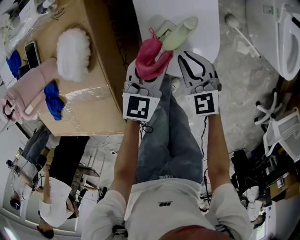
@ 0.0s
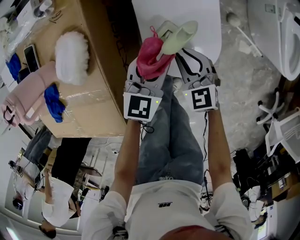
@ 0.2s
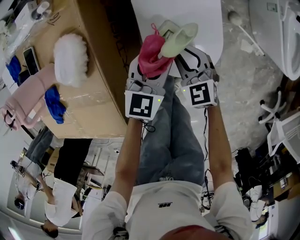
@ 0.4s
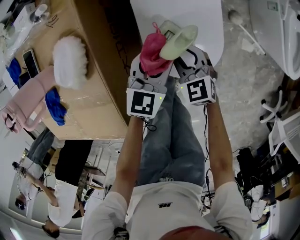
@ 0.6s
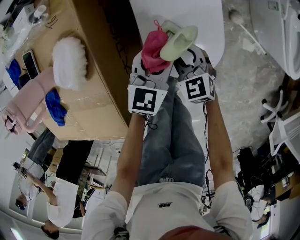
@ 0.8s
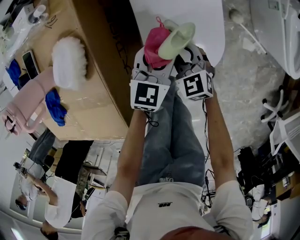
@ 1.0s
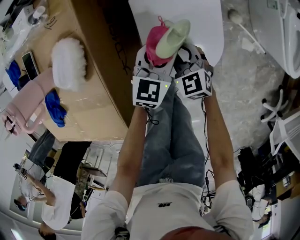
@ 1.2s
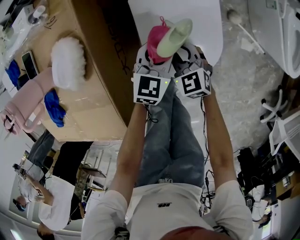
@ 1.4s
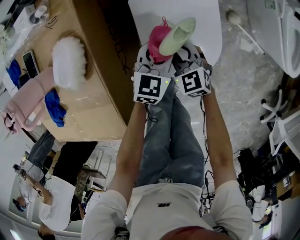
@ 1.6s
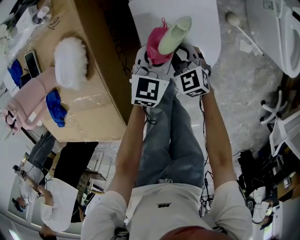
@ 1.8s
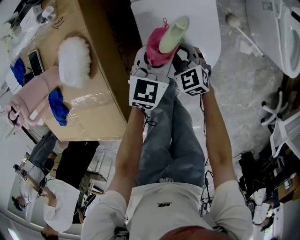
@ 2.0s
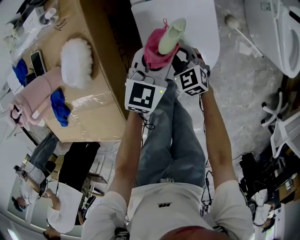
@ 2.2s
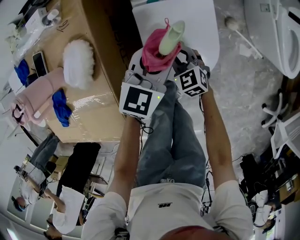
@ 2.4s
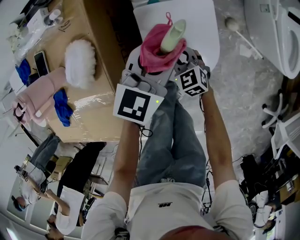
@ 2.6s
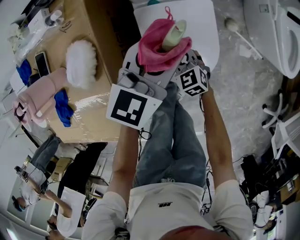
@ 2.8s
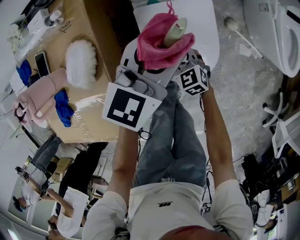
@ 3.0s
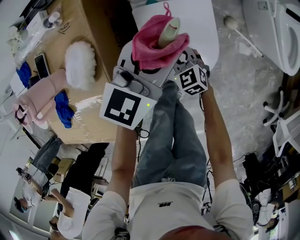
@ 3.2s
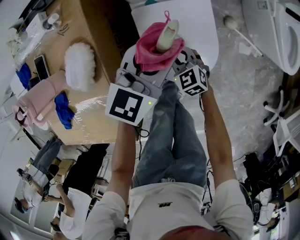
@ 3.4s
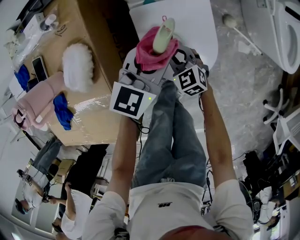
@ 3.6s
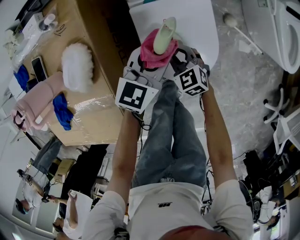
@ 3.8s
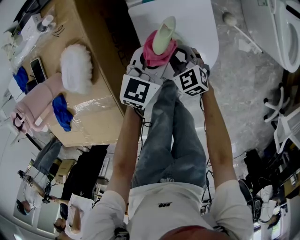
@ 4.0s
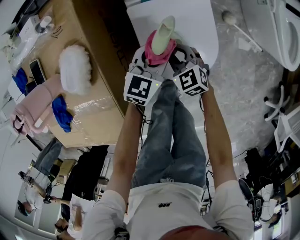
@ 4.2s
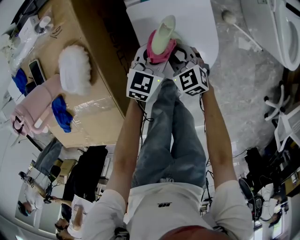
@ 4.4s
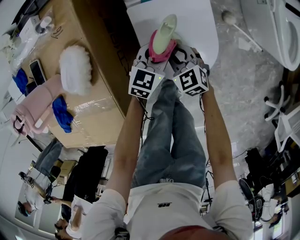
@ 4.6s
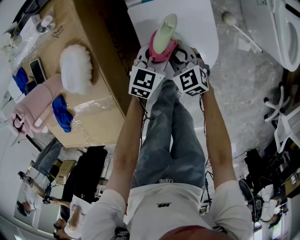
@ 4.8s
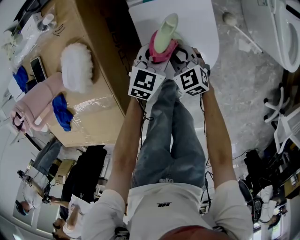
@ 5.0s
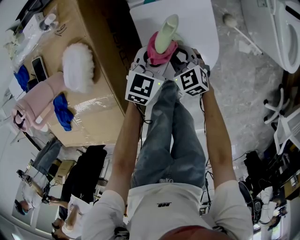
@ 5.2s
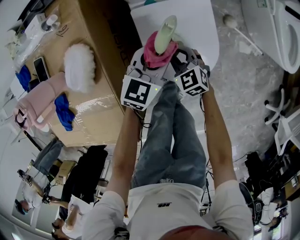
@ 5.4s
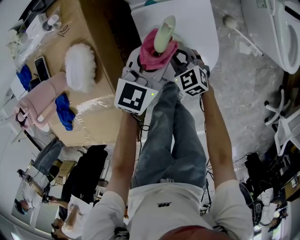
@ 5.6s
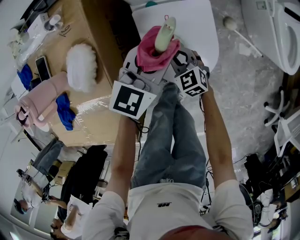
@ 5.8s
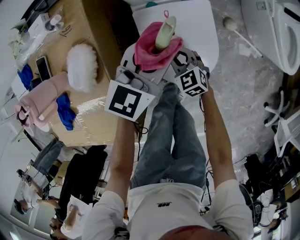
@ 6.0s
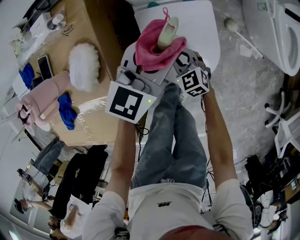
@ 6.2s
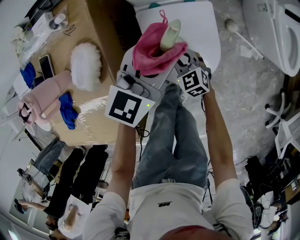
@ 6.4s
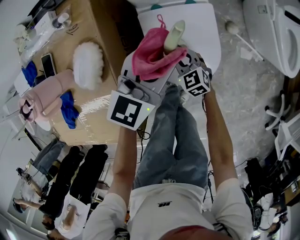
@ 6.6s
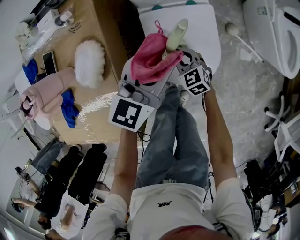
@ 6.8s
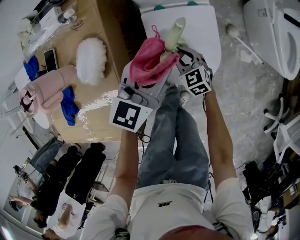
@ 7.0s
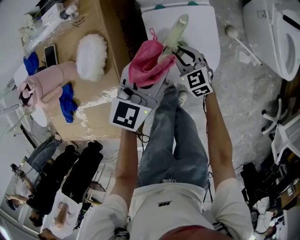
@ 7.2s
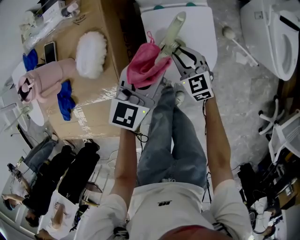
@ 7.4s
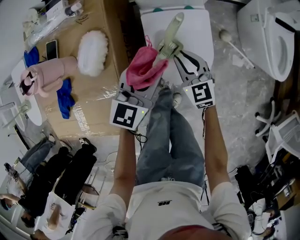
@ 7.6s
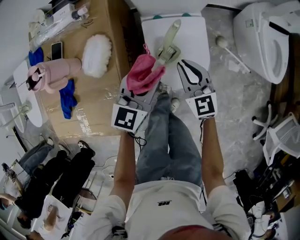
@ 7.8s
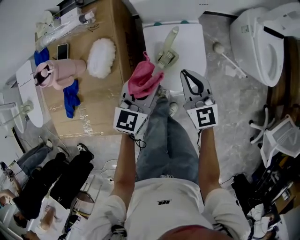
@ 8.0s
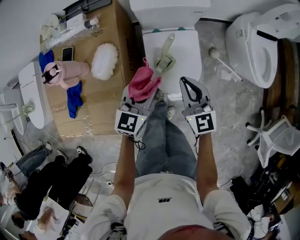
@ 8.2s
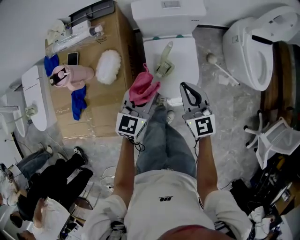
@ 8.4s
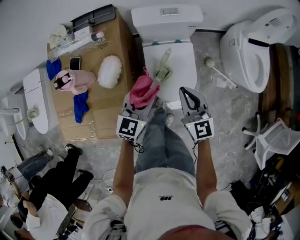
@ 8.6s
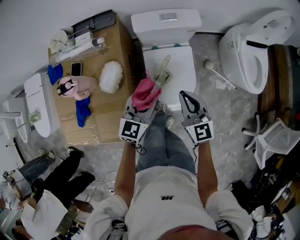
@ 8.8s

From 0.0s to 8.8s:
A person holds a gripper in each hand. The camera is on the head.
From 0.0s to 1.4s: The grippers both shift downward by approximately 10 cm.
From 1.4s to 3.0s: The left gripper heads upward, covering roughly 20 cm.
From 3.0s to 4.4s: The left gripper moves downward, roughly 20 cm.
From 4.4s to 5.8s: The left gripper travels upward by approximately 15 cm.
From 5.8s to 7.4s: The right gripper shifts approximately 5 cm upward; the left gripper is displaced backward and to the left by roughly 10 cm.
From 7.4s to 8.8s: The right gripper moves upward, about 30 cm, and closes up, while the left gripper moves upward, some 15 cm.

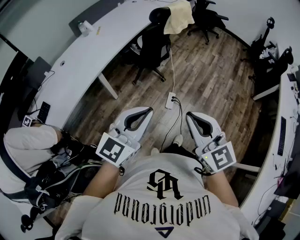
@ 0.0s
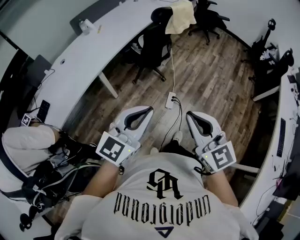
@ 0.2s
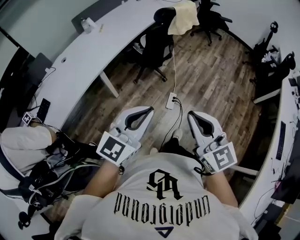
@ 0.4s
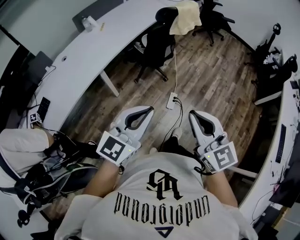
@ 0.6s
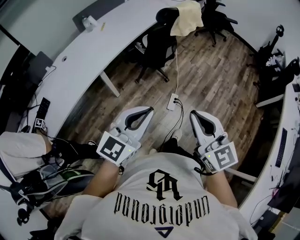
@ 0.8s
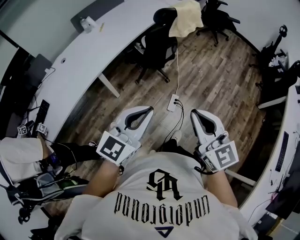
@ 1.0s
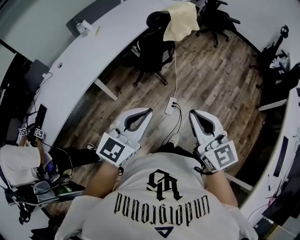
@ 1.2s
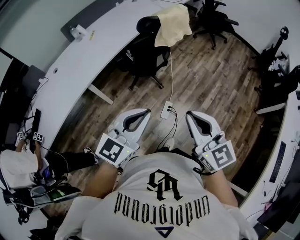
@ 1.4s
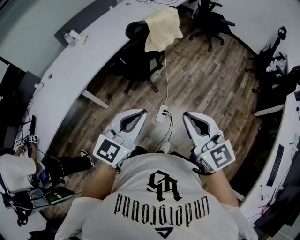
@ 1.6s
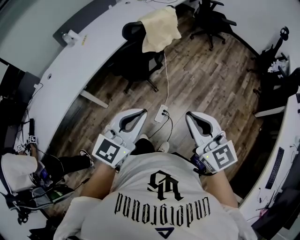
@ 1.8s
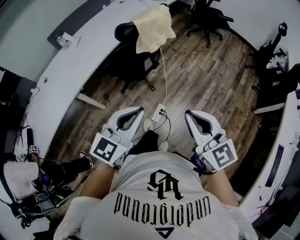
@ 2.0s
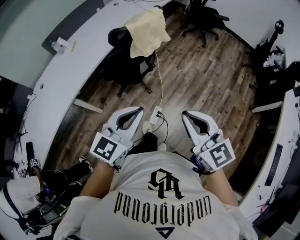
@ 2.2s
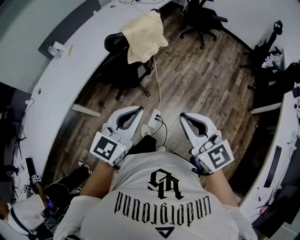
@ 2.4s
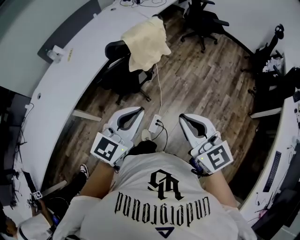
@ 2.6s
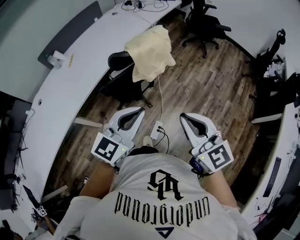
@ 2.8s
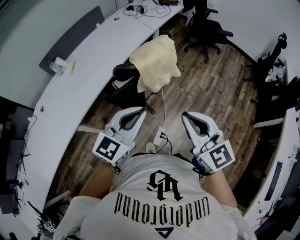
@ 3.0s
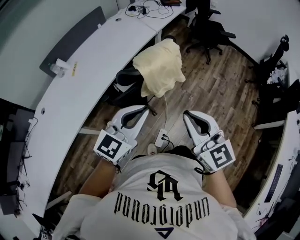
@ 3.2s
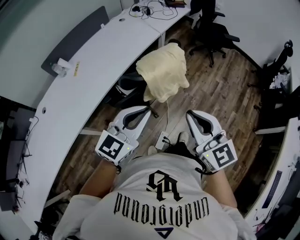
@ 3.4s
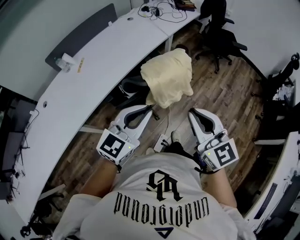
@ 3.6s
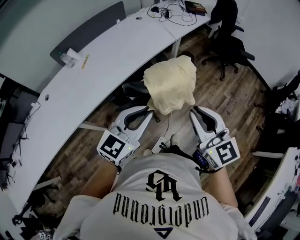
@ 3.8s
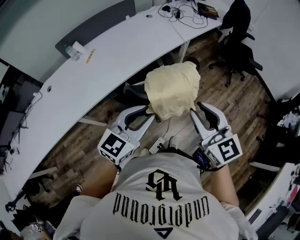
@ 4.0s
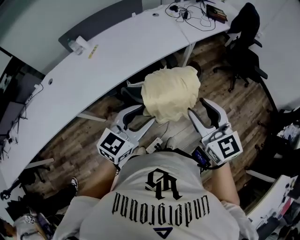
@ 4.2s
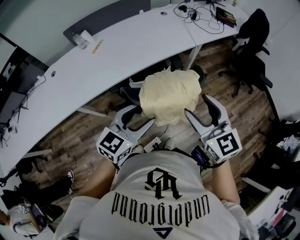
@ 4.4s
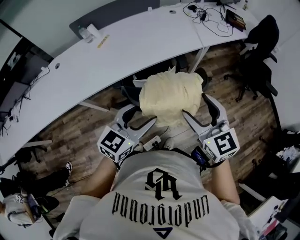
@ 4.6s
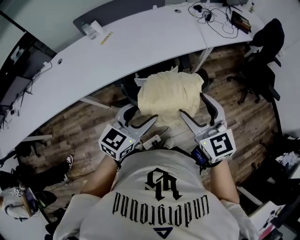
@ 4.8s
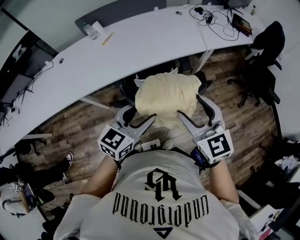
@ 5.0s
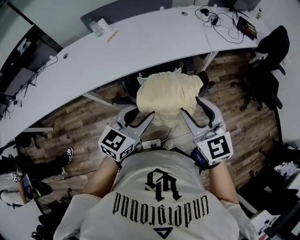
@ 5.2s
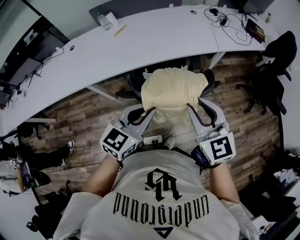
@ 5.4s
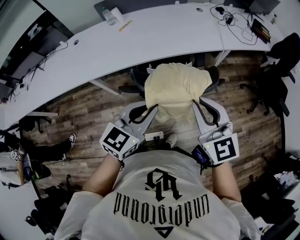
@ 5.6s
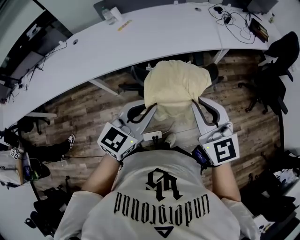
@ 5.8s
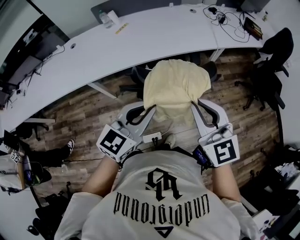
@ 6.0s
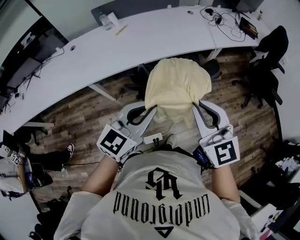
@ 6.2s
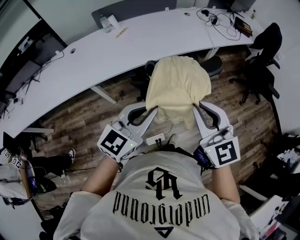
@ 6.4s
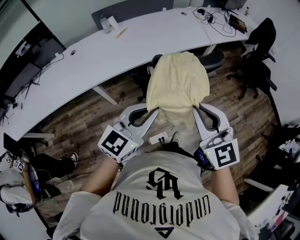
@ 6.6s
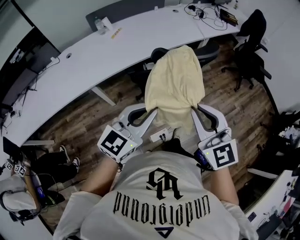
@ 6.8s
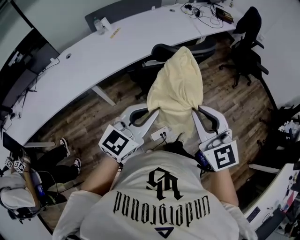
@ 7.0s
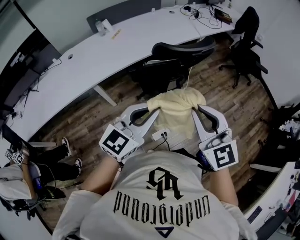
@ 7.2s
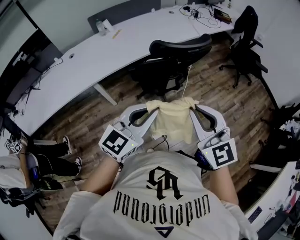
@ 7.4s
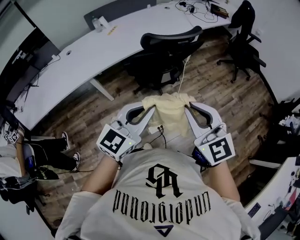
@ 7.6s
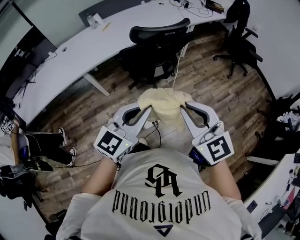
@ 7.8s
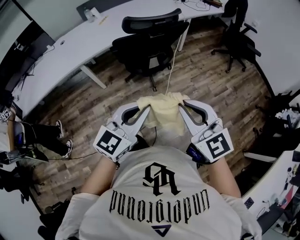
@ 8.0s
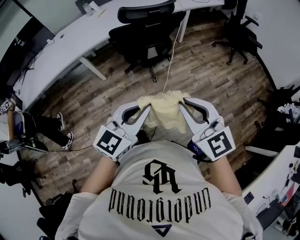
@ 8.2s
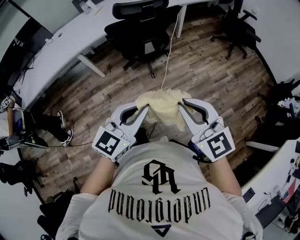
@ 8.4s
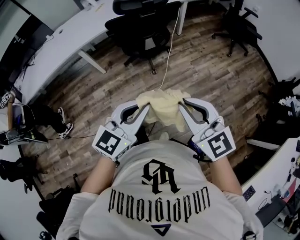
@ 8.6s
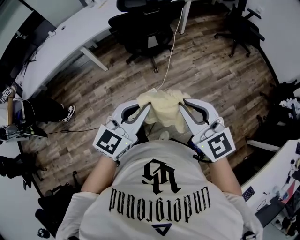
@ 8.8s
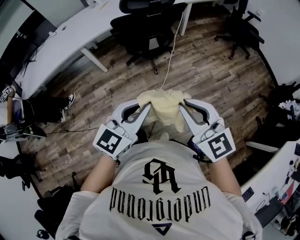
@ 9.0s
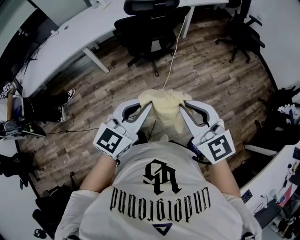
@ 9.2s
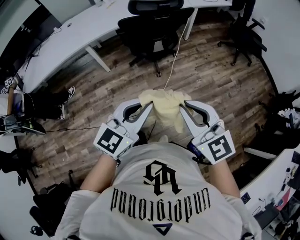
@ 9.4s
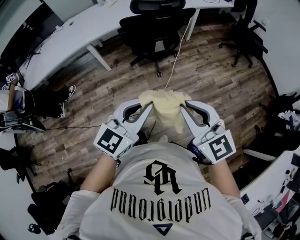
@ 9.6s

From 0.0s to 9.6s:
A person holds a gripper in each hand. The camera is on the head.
From 0.0s to 1.6s: Both grippers move forward and to the right, approximately 25 cm.
From 1.6s to 3.2s: Both grippers move forward, about 30 cm.
From 3.2s to 4.8s: The right gripper ends up roughly 25 cm from where it was, rotates about 30 degrees, and opens up. The left gripper changes place by roughly 20 cm, changes its angle by approximately 40 degrees, and opens up.
From 4.8s to 6.4s: The right gripper moves backward and to the left, about 15 cm, and closes its fingers, while the left gripper shifts roughly 15 cm backward, upward and to the left, and closes up.
From 6.4s to 8.0s: The grippers both shift backward by about 30 cm.
From 8.0s to 9.6s: The grippers both shift backward by some 10 cm.

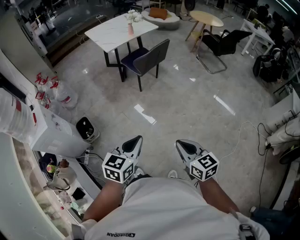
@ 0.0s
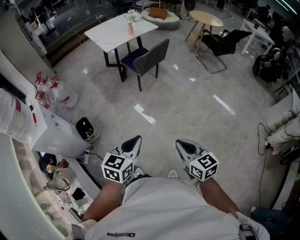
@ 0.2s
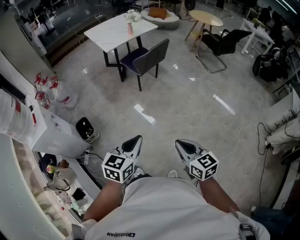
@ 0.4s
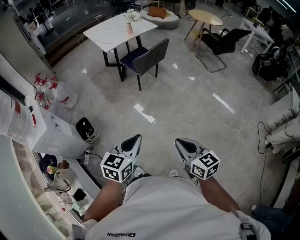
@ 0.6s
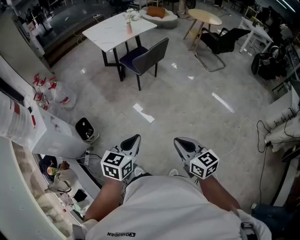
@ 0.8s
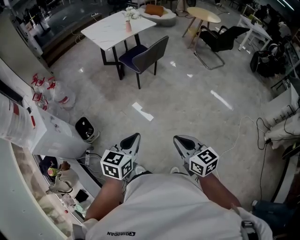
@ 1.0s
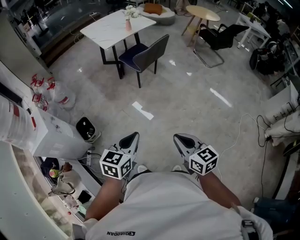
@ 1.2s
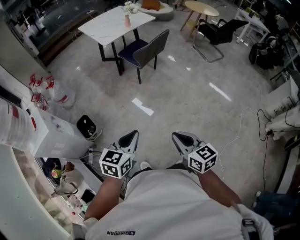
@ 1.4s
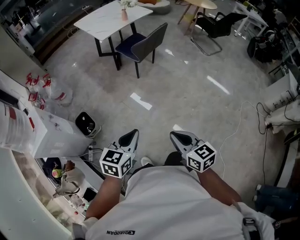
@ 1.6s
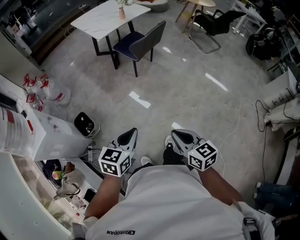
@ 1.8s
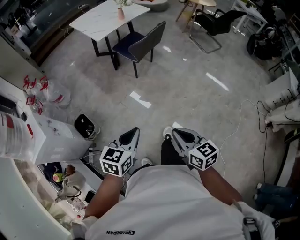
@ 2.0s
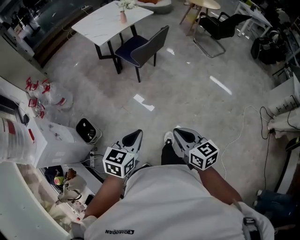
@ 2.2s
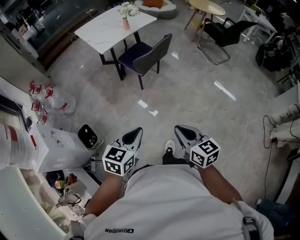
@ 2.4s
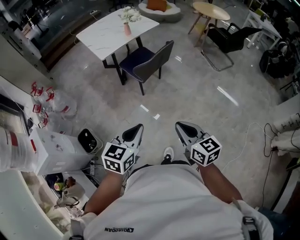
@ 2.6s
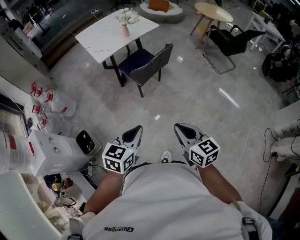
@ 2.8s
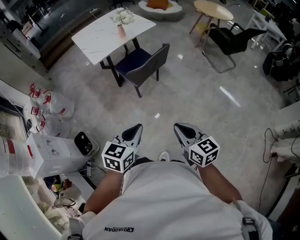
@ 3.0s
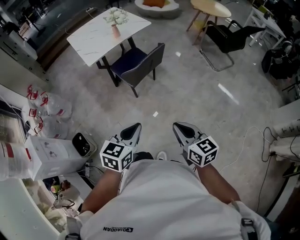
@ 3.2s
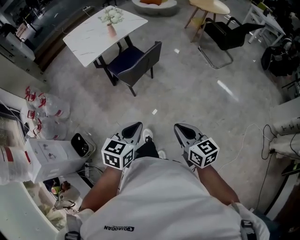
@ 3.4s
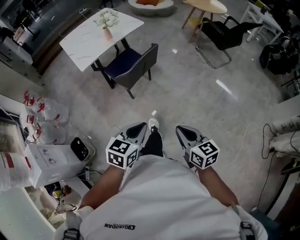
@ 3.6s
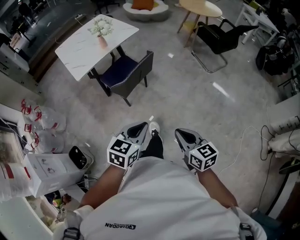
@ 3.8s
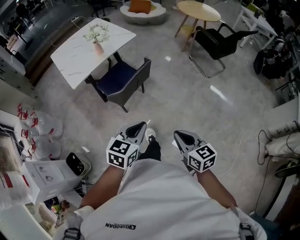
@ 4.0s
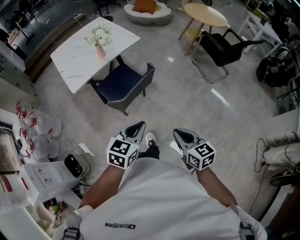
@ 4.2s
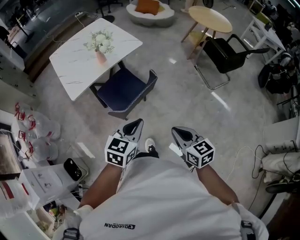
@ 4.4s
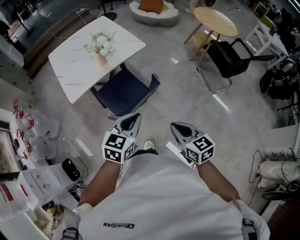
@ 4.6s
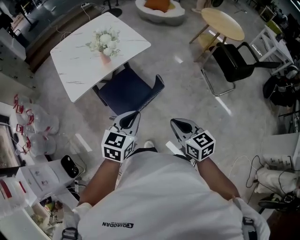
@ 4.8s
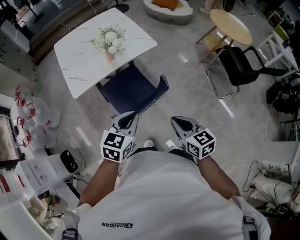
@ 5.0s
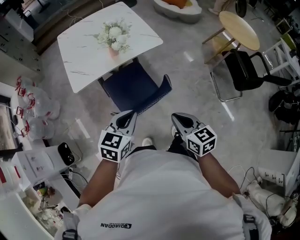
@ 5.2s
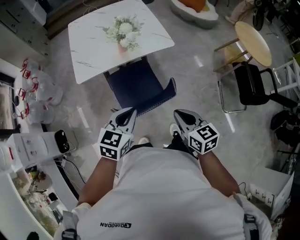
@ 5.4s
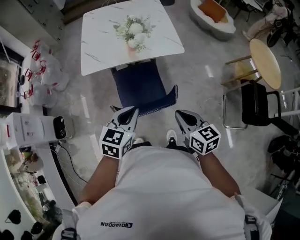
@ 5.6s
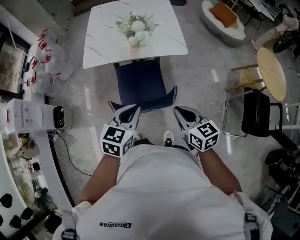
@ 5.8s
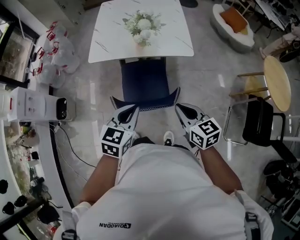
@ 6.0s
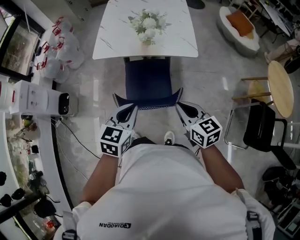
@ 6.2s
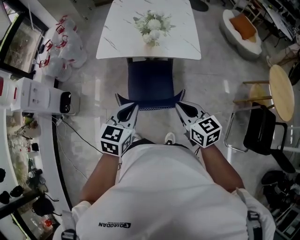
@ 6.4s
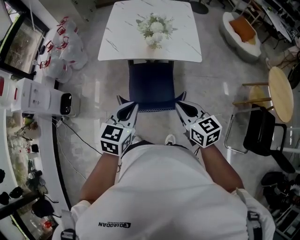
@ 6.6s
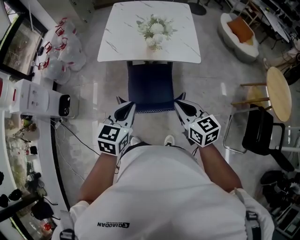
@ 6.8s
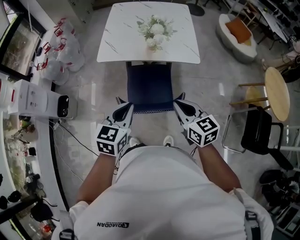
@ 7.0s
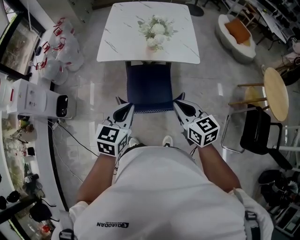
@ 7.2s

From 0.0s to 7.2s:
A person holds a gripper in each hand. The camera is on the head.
From 0.0s to 1.4s: Both grippers travel together to the left, about 10 cm.
From 1.4s to 2.8s: The grippers both shift forward by approximately 30 cm.
From 2.8s to 4.4s: The two grippers go approximately 35 cm forward.
From 4.4s to 5.8s: The left gripper changes place by some 20 cm, and turns by about 40 degrees. Meanwhile the right gripper ends up approximately 30 cm from where it was, and turns by approximately 40 degrees.
From 5.8s to 7.2s: The left gripper is displaced to the left by roughly 5 cm; the right gripper shifts by approximately 5 cm.
